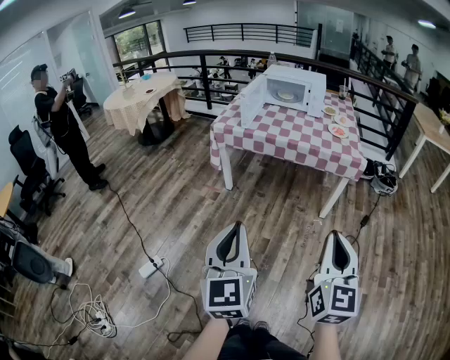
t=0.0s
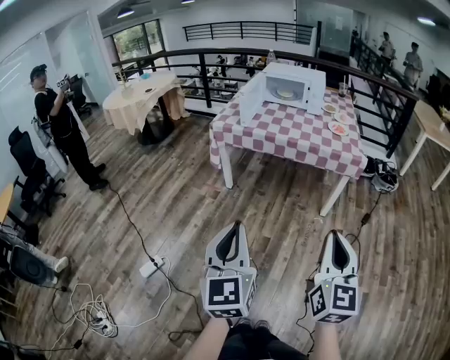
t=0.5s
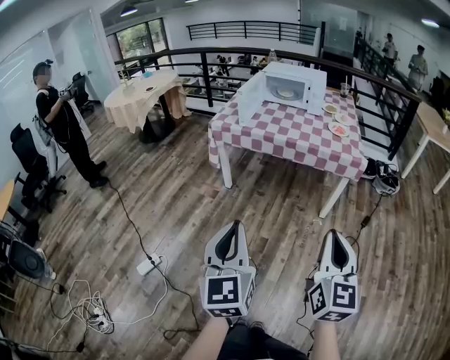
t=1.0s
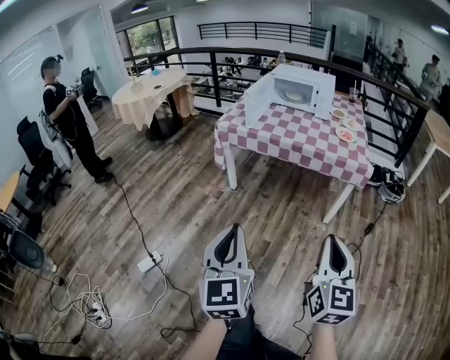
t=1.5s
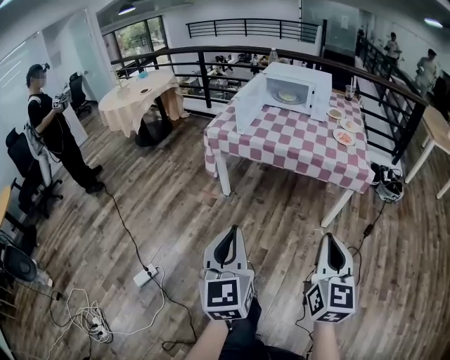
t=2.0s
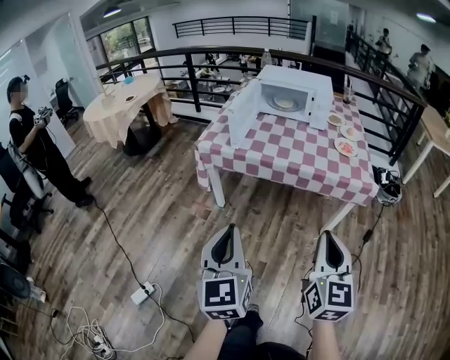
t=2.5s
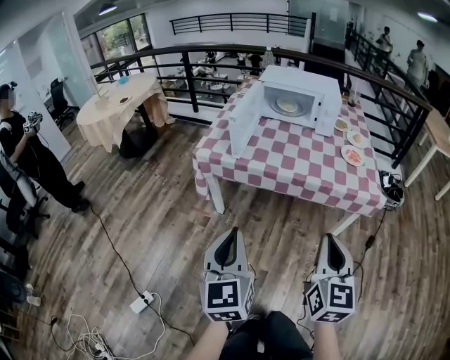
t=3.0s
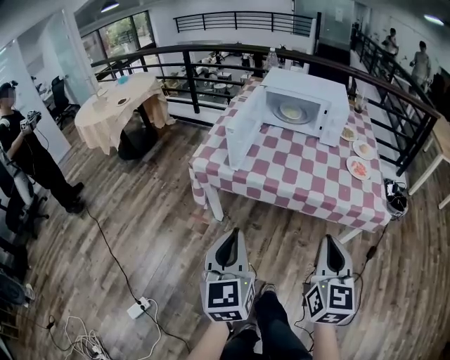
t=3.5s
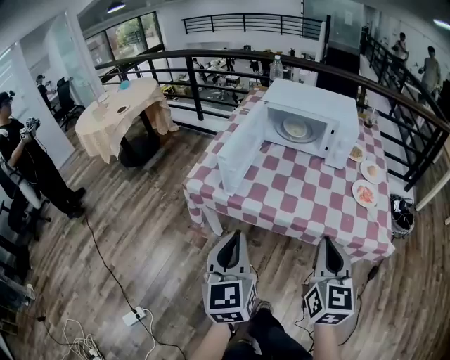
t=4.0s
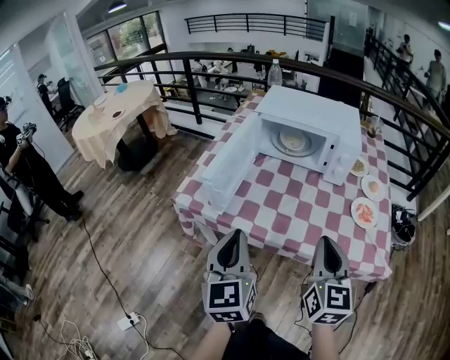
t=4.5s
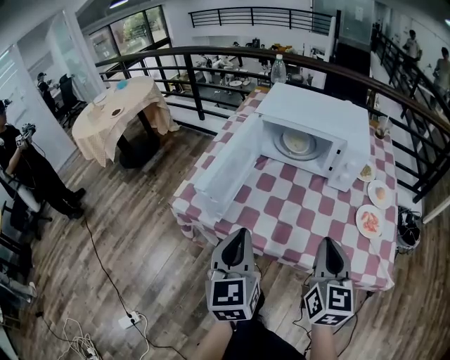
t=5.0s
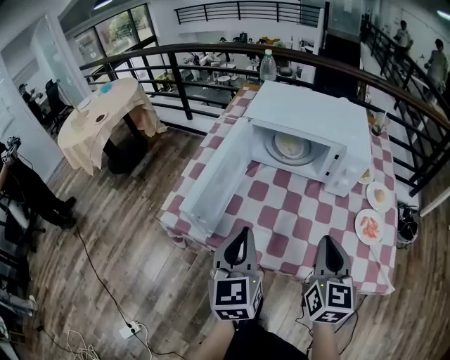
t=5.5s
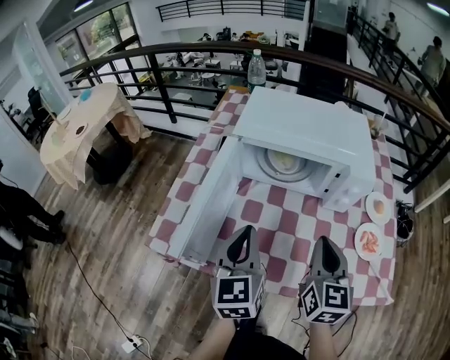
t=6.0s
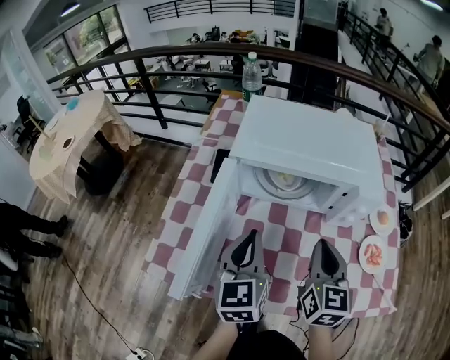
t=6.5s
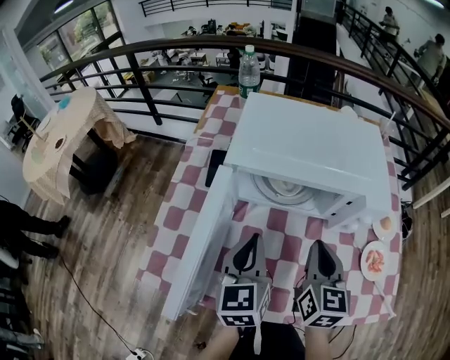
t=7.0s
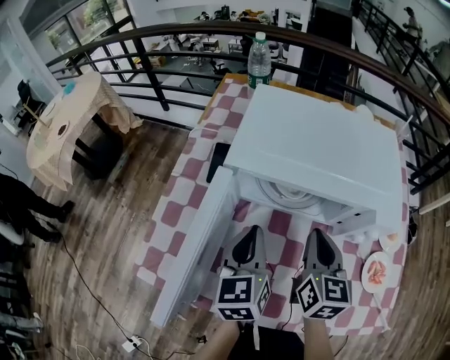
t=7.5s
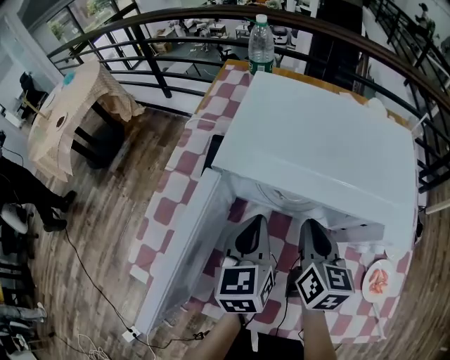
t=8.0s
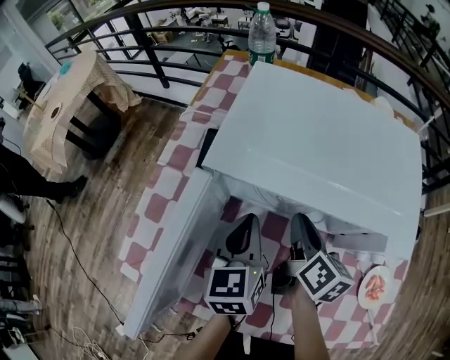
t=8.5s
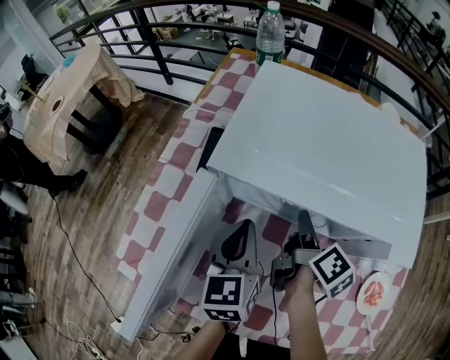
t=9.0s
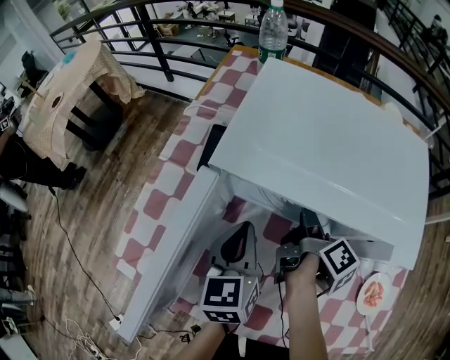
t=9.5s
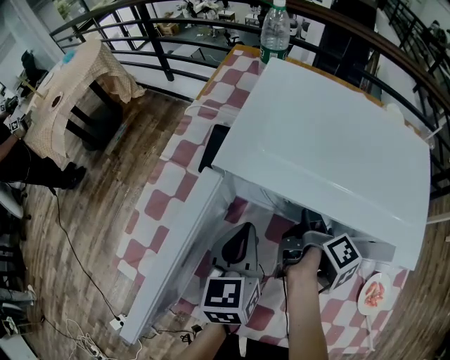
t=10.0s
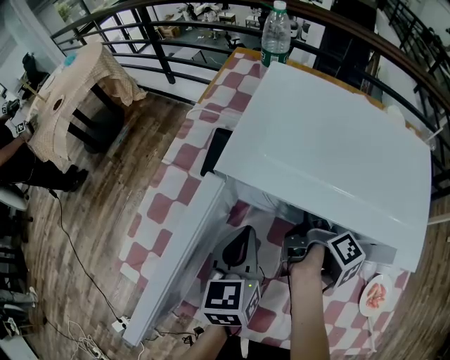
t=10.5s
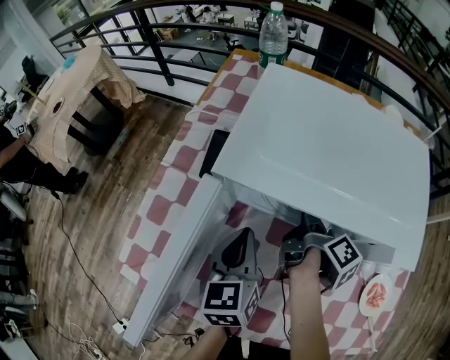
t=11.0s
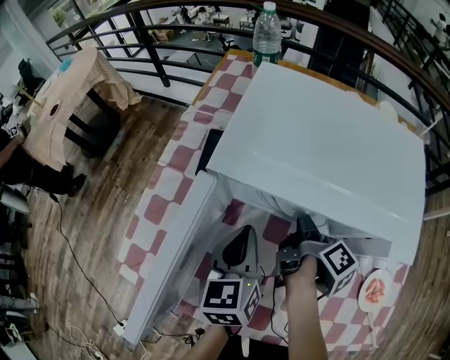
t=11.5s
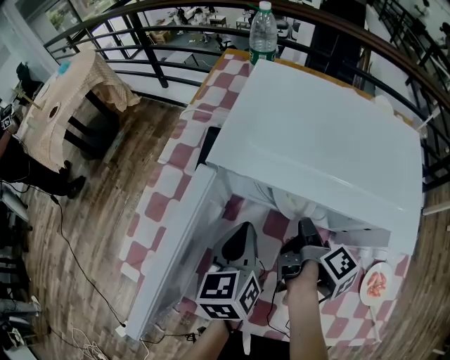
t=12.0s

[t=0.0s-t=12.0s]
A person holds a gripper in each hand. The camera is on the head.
t=0.0s to t=2.0s: Both grippers travel together forward, roughly 15 cm.
t=2.0s to t=4.0s: The two grippers travel together, forward, approximately 40 cm.
t=4.0s to t=6.0s: The grippers both shift forward by roughly 30 cm.
t=6.0s to t=8.0s: The left gripper goes roughly 20 cm forward and downward. Meanwhile the right gripper heads forward, covering some 20 cm.
t=8.0s to t=10.0s: The right gripper goes some 10 cm downward and forward, and rolls clockwise, seen from behind, by some 70 degrees.
t=10.0s to t=12.0s: The right gripper closes its fingers.

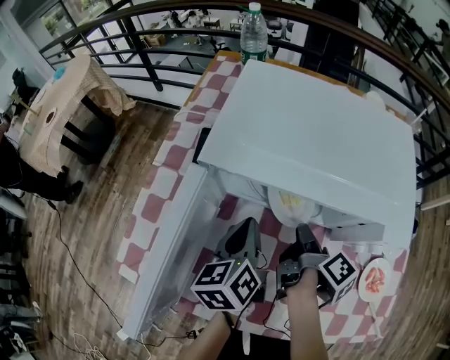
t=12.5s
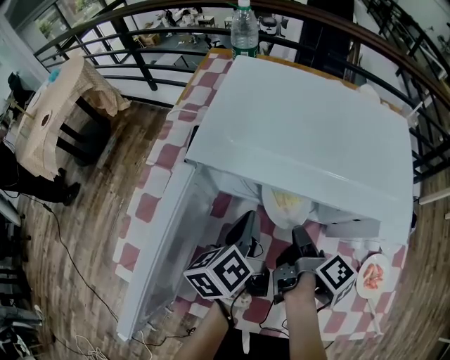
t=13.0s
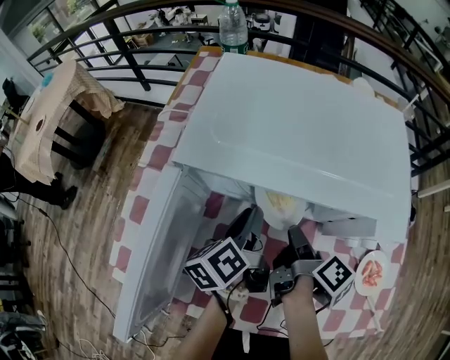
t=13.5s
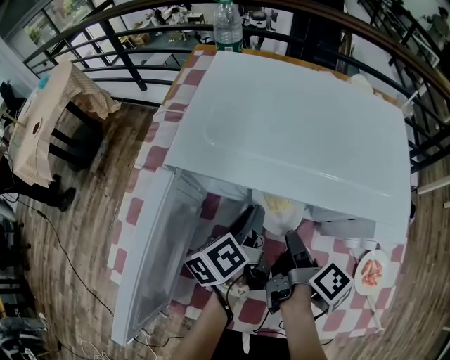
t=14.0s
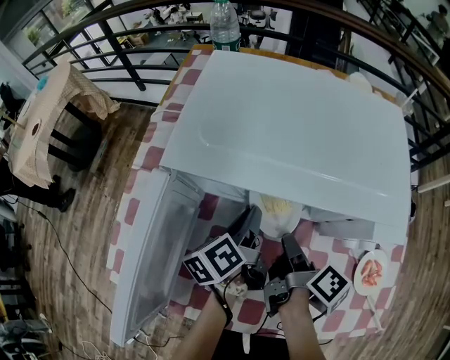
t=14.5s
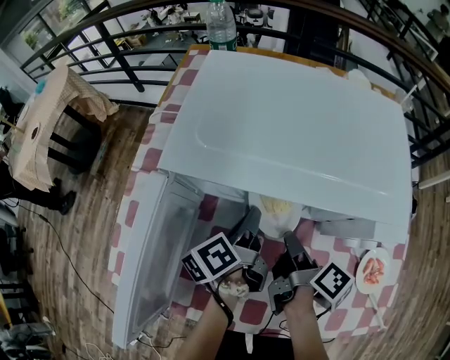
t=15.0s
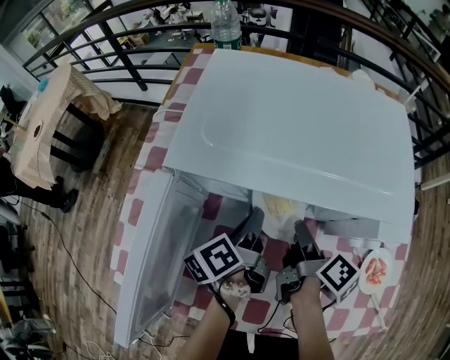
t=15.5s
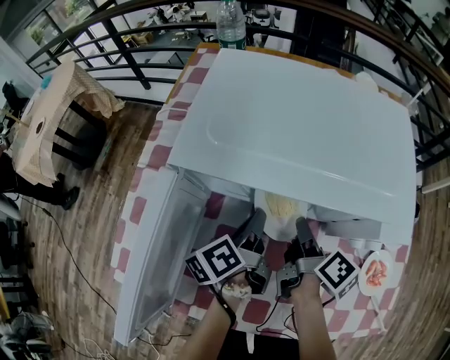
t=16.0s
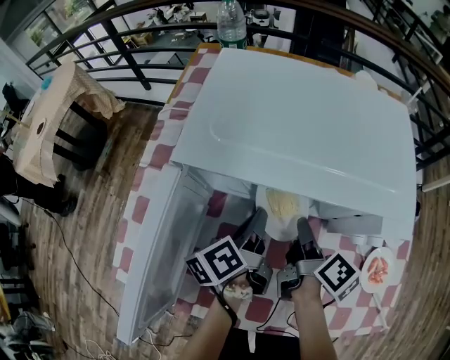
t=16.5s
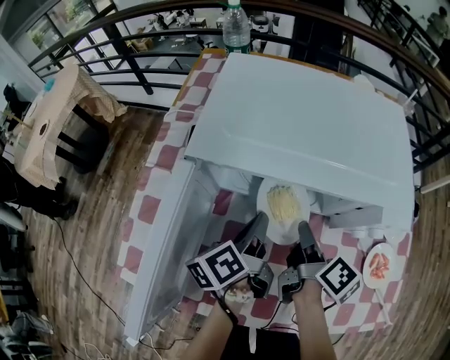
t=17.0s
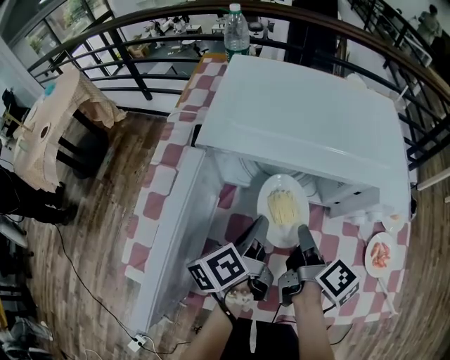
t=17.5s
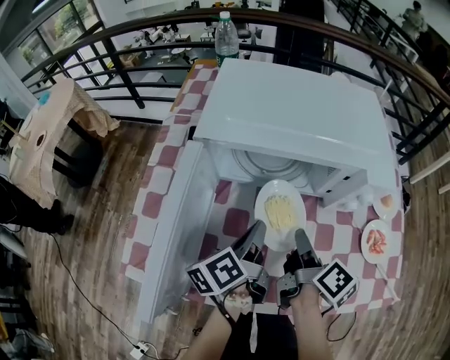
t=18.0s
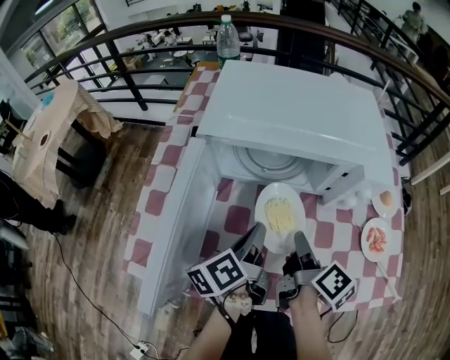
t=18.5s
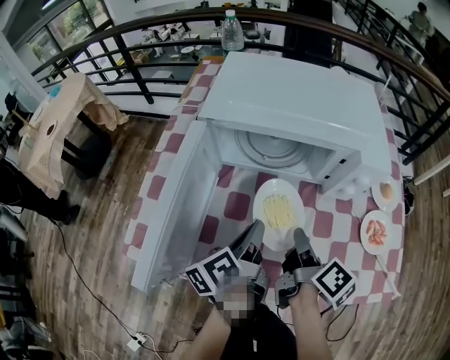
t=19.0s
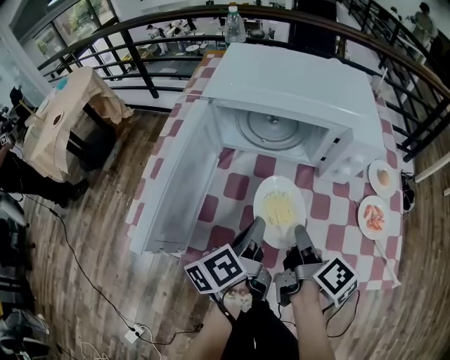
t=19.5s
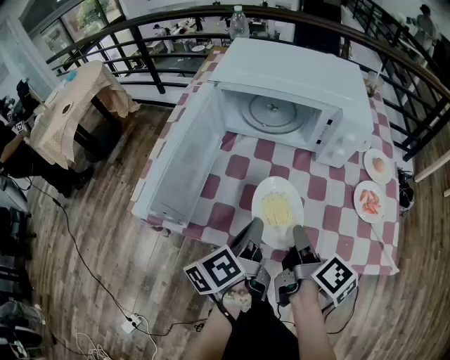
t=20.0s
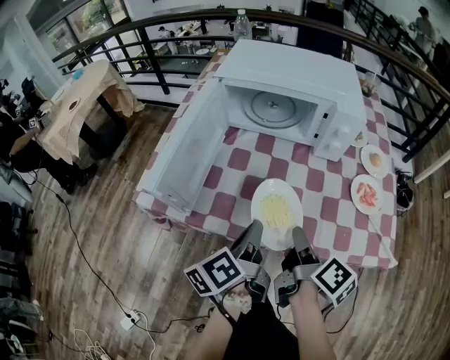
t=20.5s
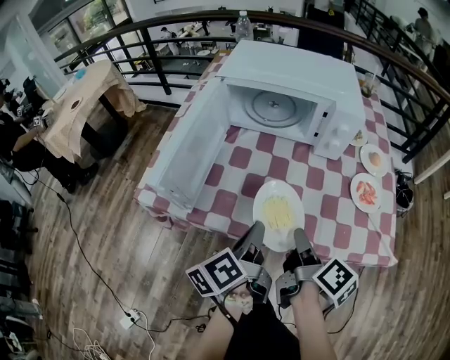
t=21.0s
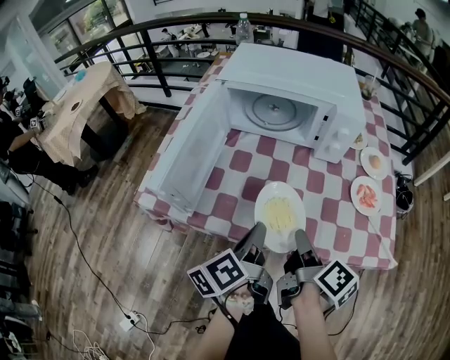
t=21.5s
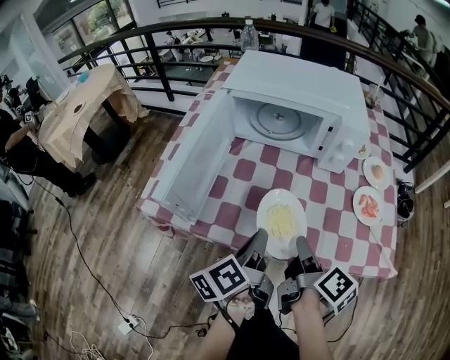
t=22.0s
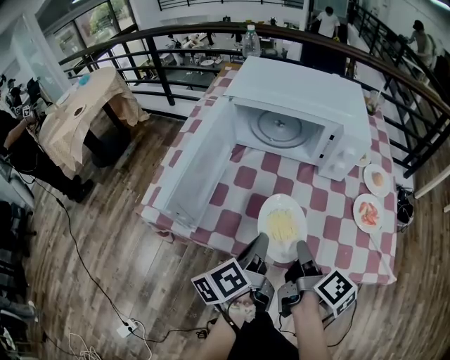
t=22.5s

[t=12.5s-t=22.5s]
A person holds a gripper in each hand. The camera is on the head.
t=12.5s to t=14.5s: The left gripper heads downward, covering about 5 cm, rotates about 20 degrees, and opens.
t=14.5s to t=16.5s: The grippers make only small movements.
t=16.5s to t=18.5s: The grippers both shift backward by about 10 cm.
t=18.5s to t=20.5s: The grippers both shift backward by roughly 20 cm.
t=20.5s to t=22.5s: The grippers stay close to where they were, moving slightly.

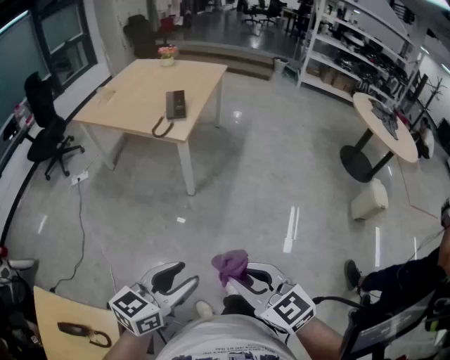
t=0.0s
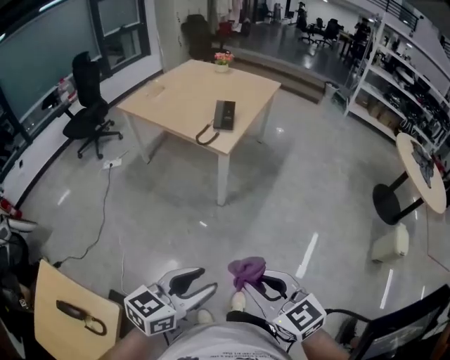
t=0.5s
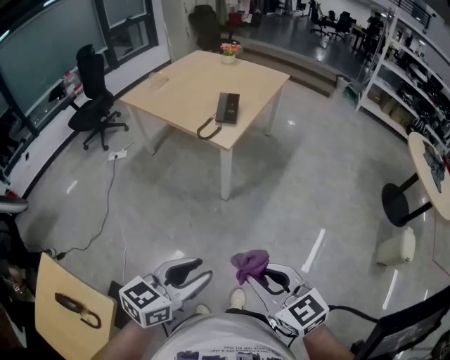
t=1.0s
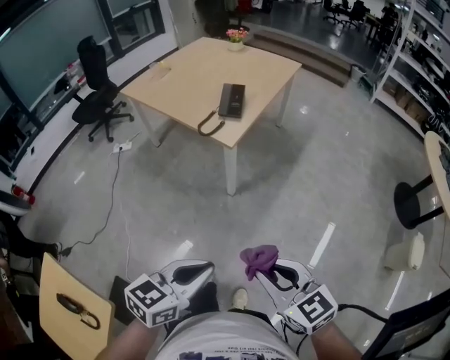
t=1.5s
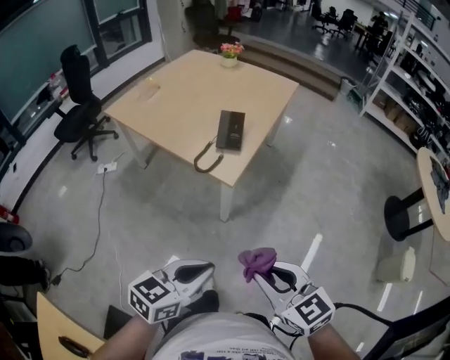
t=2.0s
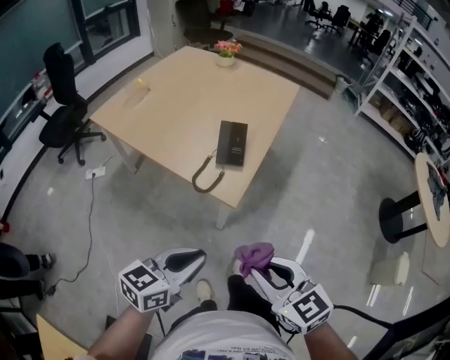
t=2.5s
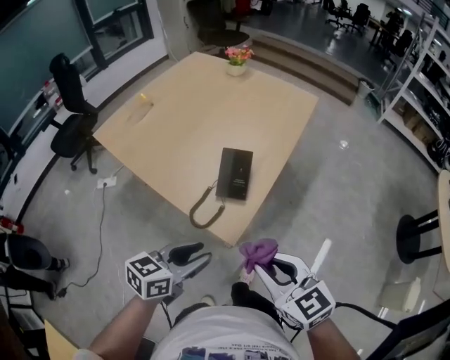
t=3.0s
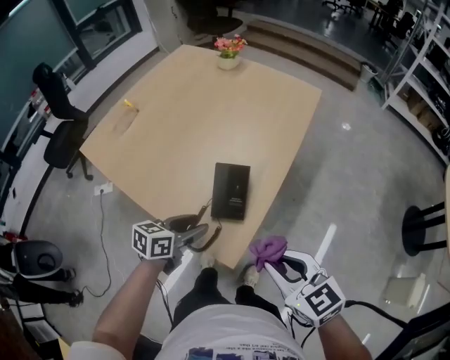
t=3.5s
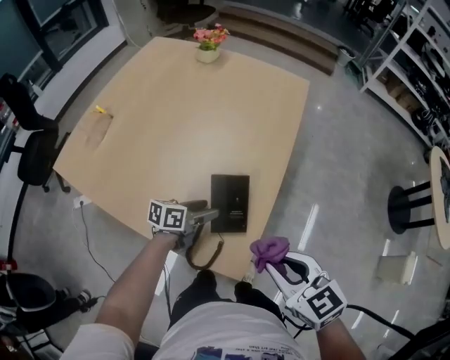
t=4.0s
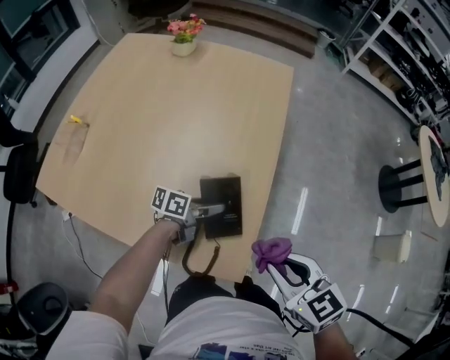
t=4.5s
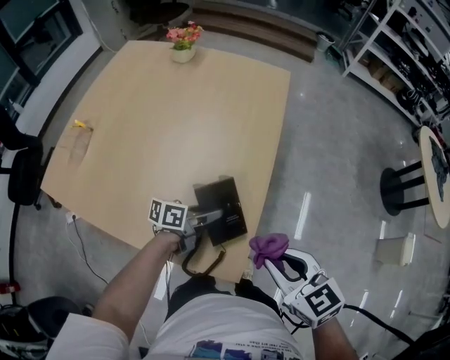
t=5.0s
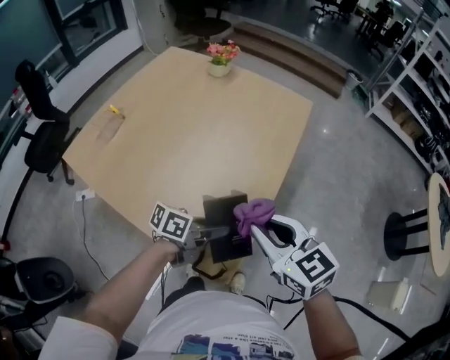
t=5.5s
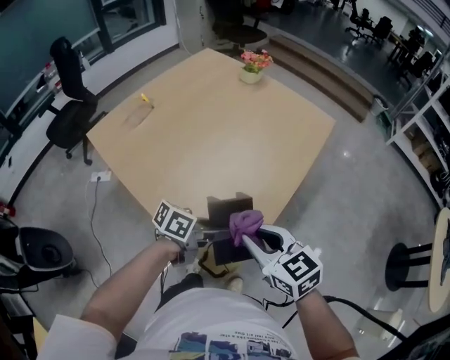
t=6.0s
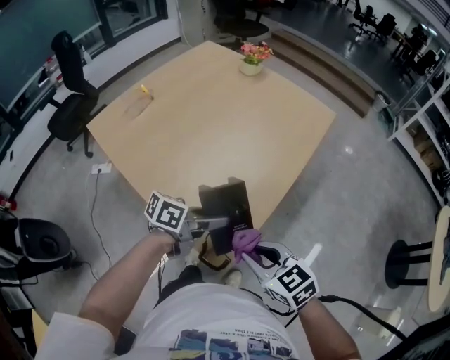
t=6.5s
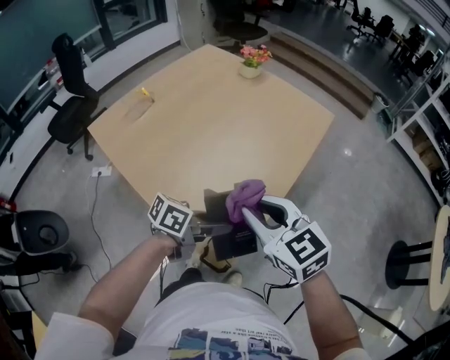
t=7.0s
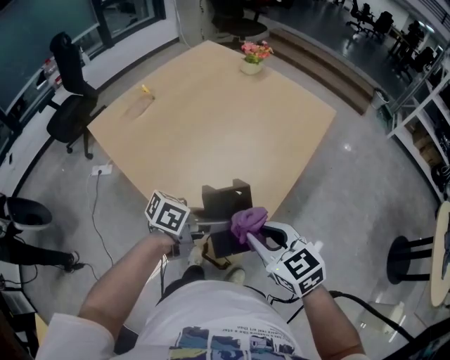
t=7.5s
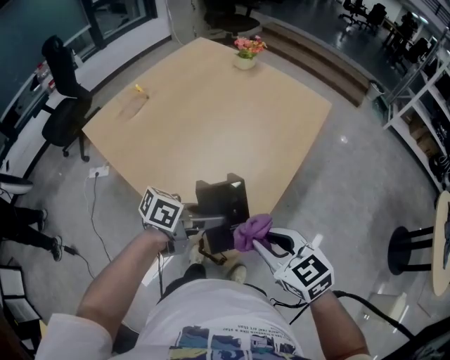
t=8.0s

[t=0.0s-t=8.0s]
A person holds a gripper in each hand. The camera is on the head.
t=0.0s to t=2.0s: Both grippers move forward, roughly 25 cm. The left gripper closes up.
t=2.0s to t=4.0s: The two grippers go roughly 40 cm forward. The left gripper rotates roughly 30 degrees, and opens up.
t=4.0s to t=6.0s: The right gripper heads to the left, covering about 5 cm. The left gripper is displaced upward, to the right and backward by some 15 cm, and closes.
t=6.0s to t=8.0s: The right gripper swings up and down, about 10 cm each way, with 2 reversals.
